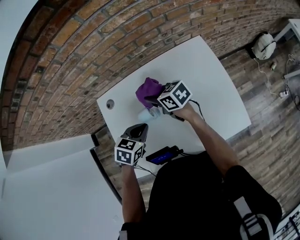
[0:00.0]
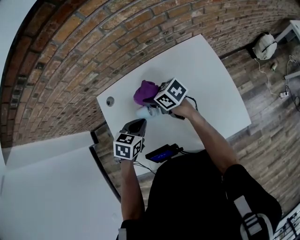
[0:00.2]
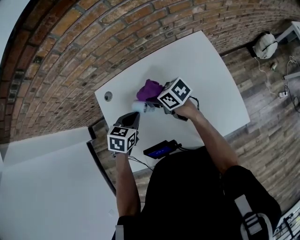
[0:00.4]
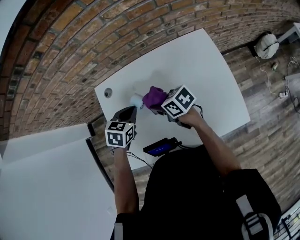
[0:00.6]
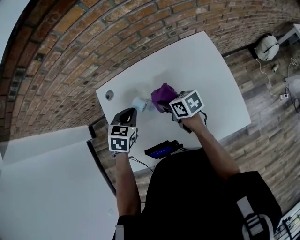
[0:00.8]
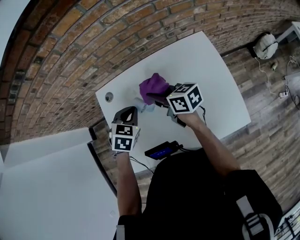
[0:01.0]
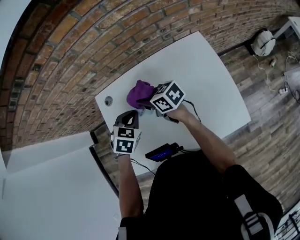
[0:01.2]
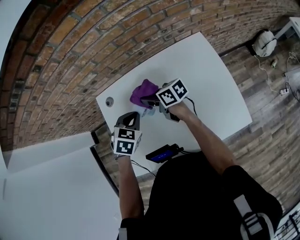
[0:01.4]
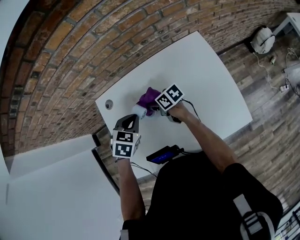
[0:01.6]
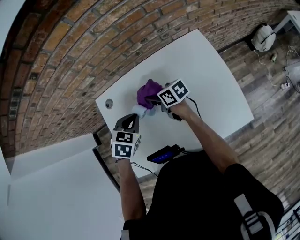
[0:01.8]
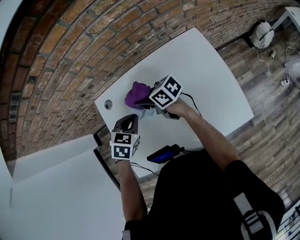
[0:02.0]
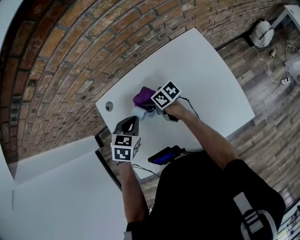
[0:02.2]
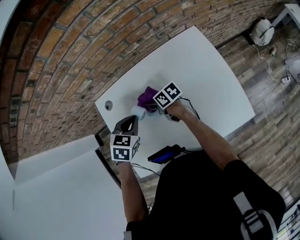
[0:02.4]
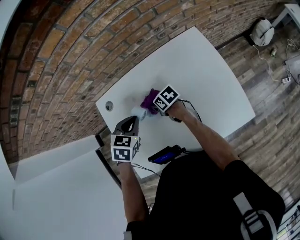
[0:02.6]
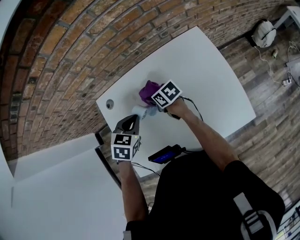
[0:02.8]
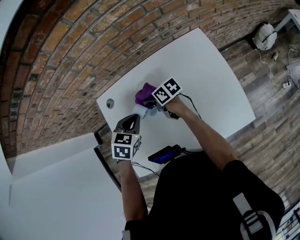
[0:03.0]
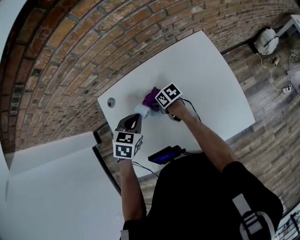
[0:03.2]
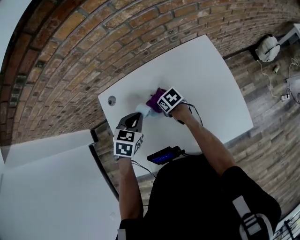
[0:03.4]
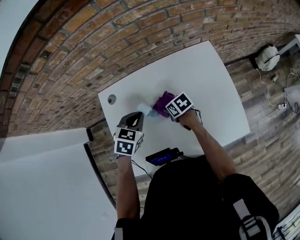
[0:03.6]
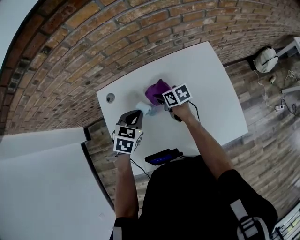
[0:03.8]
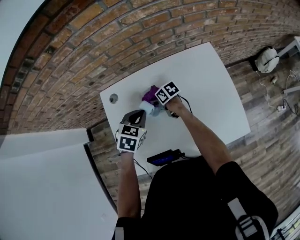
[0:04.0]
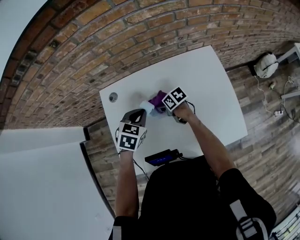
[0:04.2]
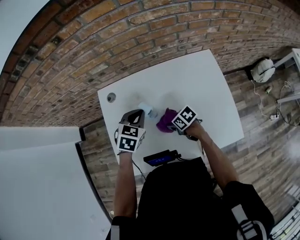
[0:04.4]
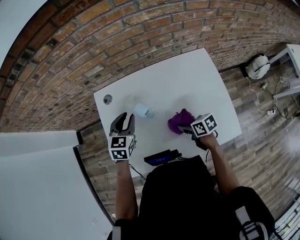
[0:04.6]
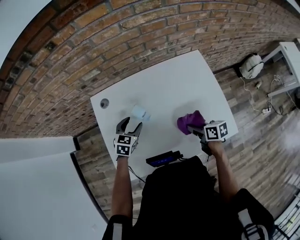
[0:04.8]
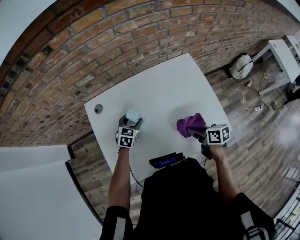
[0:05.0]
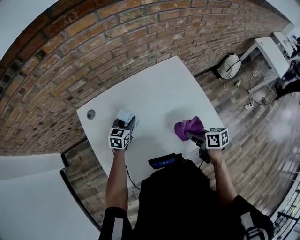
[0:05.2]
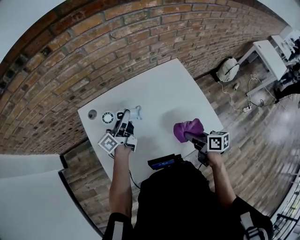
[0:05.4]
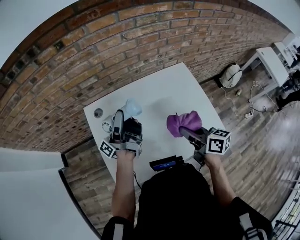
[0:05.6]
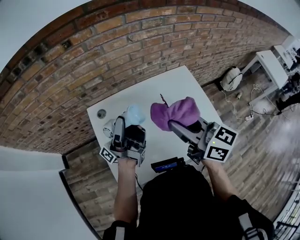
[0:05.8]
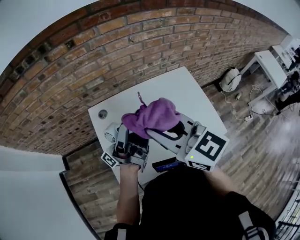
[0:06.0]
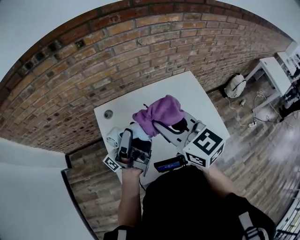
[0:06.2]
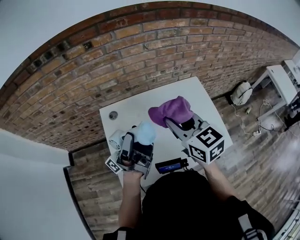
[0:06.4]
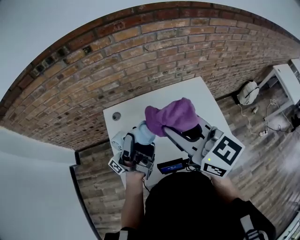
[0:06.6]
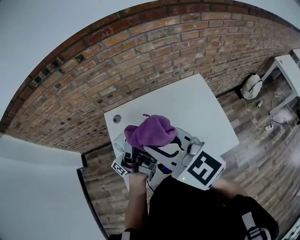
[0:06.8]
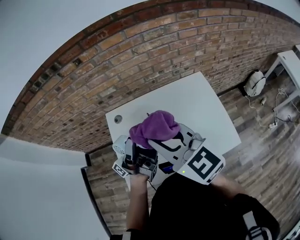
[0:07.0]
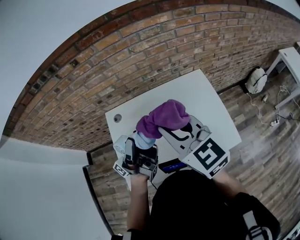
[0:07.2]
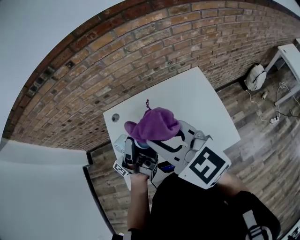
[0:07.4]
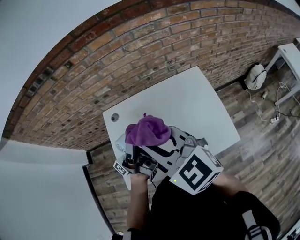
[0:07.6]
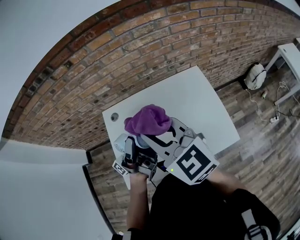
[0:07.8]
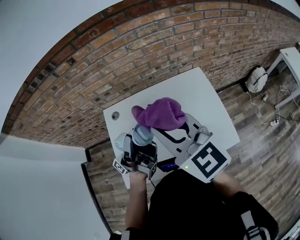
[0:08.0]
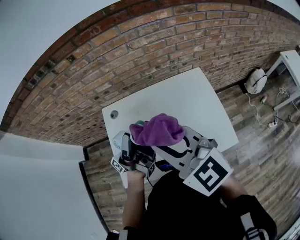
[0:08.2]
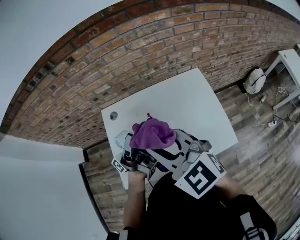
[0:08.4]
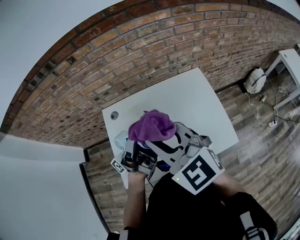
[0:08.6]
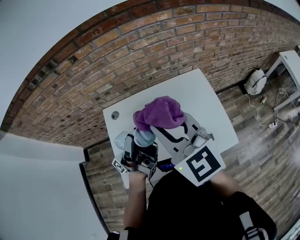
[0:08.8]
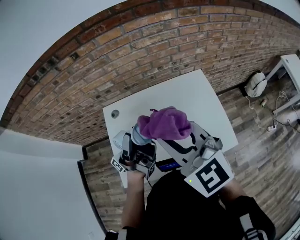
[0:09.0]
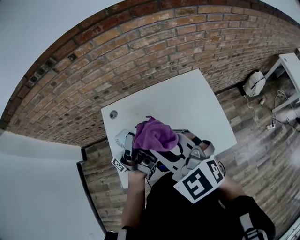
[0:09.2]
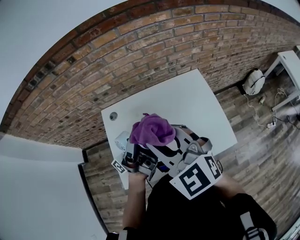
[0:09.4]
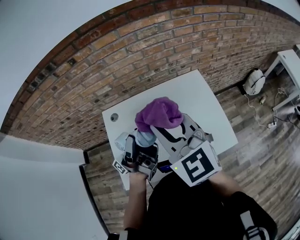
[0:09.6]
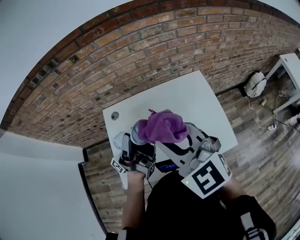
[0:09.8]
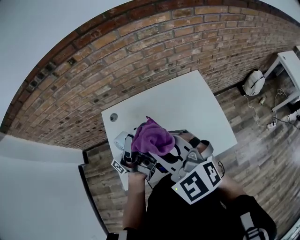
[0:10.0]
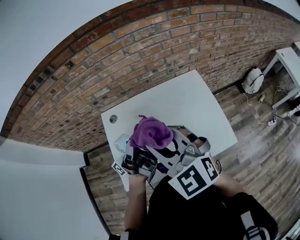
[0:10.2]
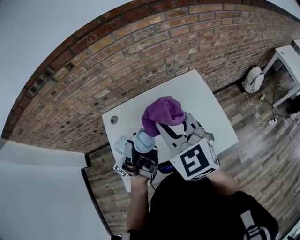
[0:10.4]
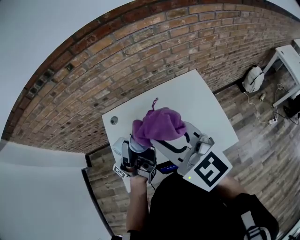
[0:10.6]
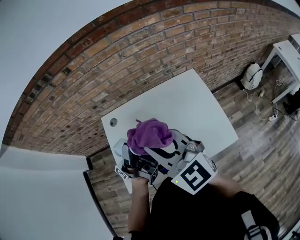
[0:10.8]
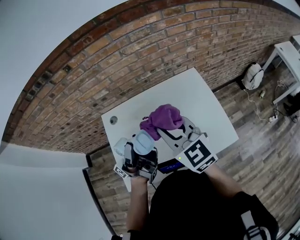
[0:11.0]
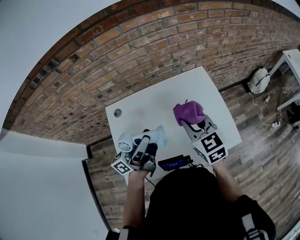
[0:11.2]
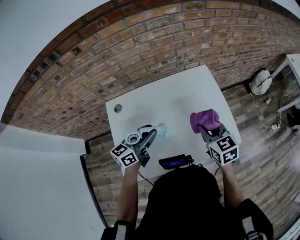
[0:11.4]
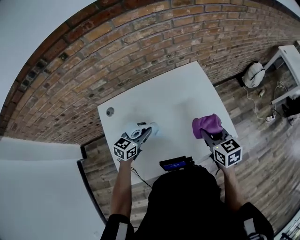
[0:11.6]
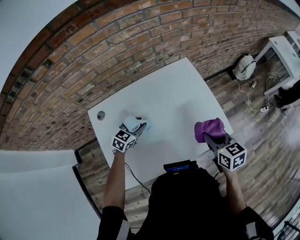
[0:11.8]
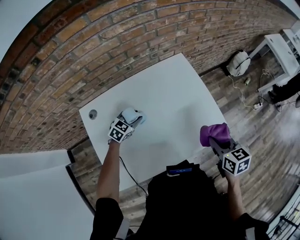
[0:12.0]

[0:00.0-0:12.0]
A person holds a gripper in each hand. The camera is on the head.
0:00.0 to 0:01.6: The right gripper travels downward by roughly 10 cm, while the left gripper is displaced forward by approximately 5 cm.
0:01.6 to 0:03.0: The right gripper moves up and down over about 15 cm, changing direction 2 times.
0:03.0 to 0:04.4: The right gripper moves forward and backward over some 15 cm, changing direction 2 times, and changes its angle by some 30 degrees.
0:04.4 to 0:06.0: The right gripper is displaced upward by approximately 40 cm, and angles its fingers upward, by approximately 40 degrees. Meanwhile the left gripper shifts some 20 cm upward, tips its fingers upward by about 100 degrees, and opens its fingers.
0:06.0 to 0:07.6: The right gripper goes left and right, roughly 10 cm each way, reversing 2 times; the left gripper travels to the right by roughly 5 cm.
0:07.6 to 0:09.0: There are only small adjustments of the grippers.
0:09.0 to 0:10.4: The right gripper changes place by some 5 cm.
0:10.4 to 0:12.0: Both grippers travel together downward, about 30 cm. The left gripper points its fingers about 90 degrees further downward. The right gripper rotates roughly 50 degrees.

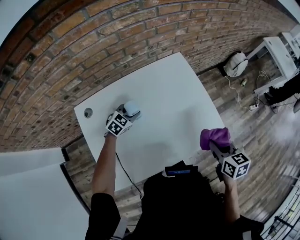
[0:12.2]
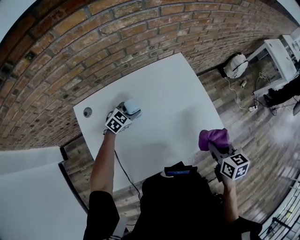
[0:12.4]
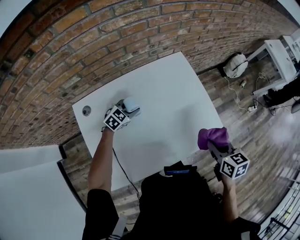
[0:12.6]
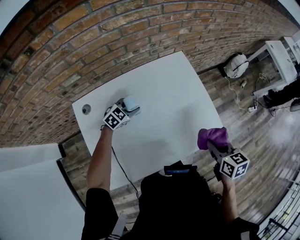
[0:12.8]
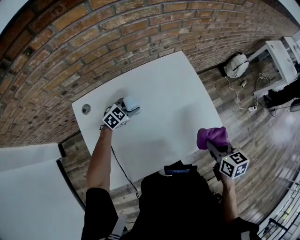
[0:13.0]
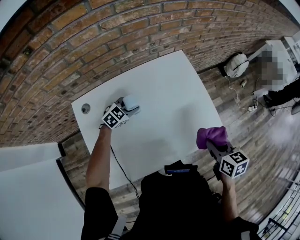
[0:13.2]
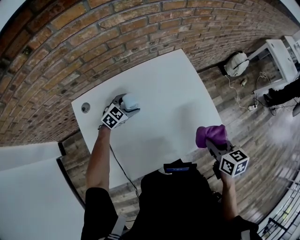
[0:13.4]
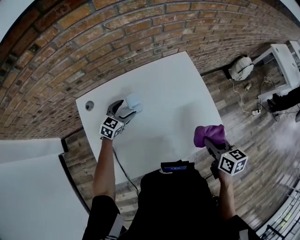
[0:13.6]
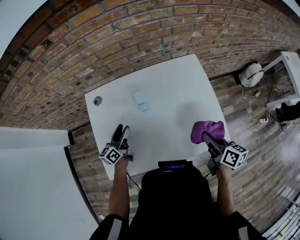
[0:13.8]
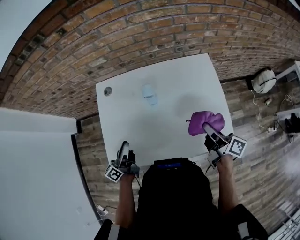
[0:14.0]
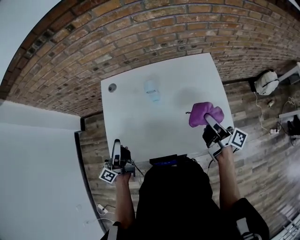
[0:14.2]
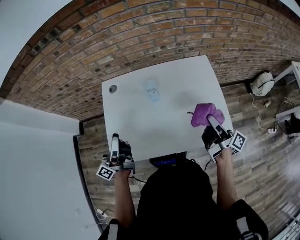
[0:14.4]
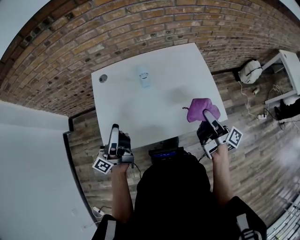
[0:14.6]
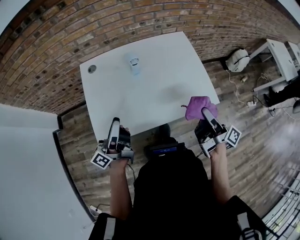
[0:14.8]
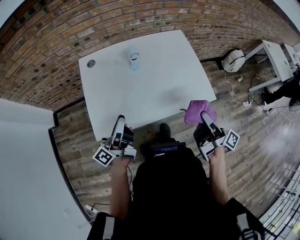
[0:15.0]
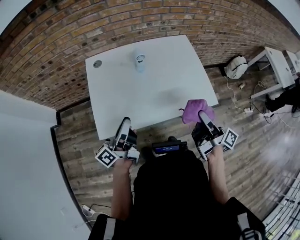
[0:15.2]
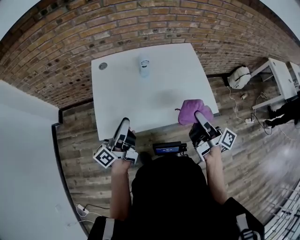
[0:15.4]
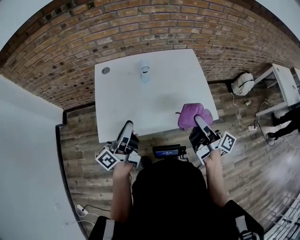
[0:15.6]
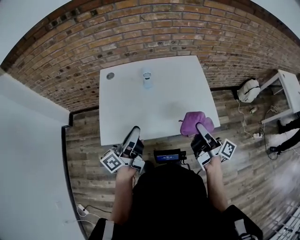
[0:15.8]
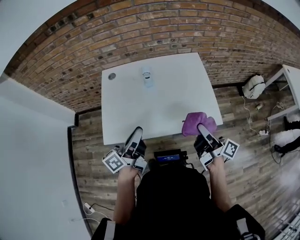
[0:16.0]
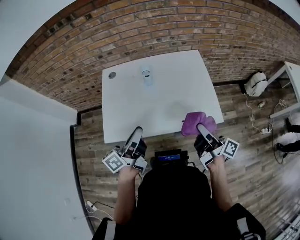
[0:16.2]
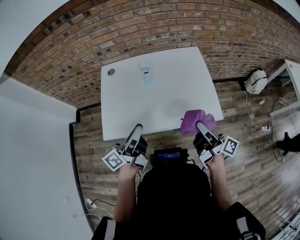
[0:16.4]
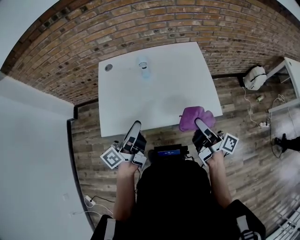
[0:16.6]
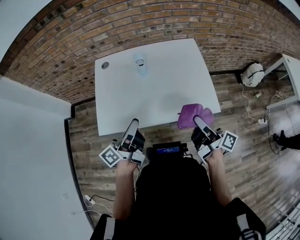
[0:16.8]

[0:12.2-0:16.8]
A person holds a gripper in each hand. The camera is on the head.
0:12.2 to 0:13.8: The left gripper shifts by some 15 cm, points its fingers about 40 degrees further upward, and opens its fingers. The right gripper shifts by approximately 5 cm, and rotates some 30 degrees.
0:13.8 to 0:15.2: The left gripper goes approximately 30 cm backward and upward, turns by approximately 30 degrees, and closes up. The right gripper is displaced backward and upward by roughly 15 cm, and points its fingers about 30 degrees further upward.
0:15.2 to 0:16.8: The left gripper moves to the right, about 10 cm.

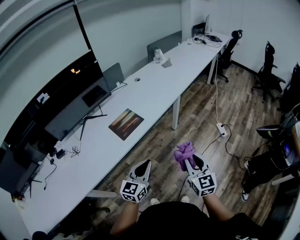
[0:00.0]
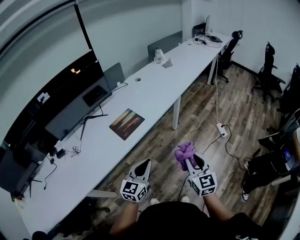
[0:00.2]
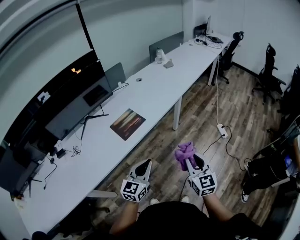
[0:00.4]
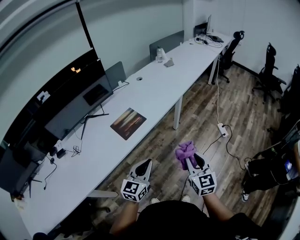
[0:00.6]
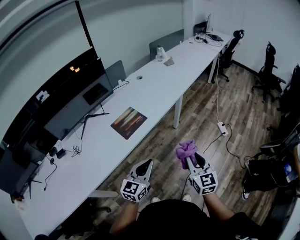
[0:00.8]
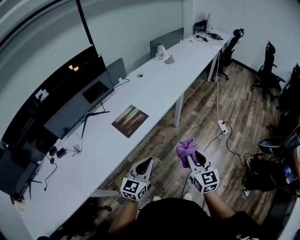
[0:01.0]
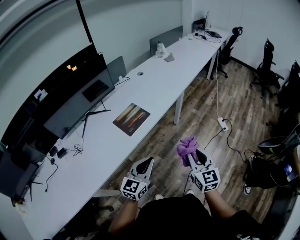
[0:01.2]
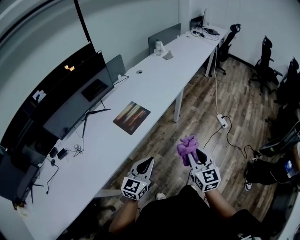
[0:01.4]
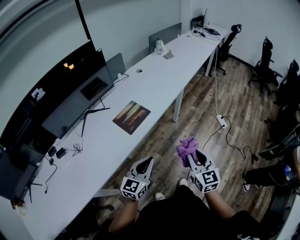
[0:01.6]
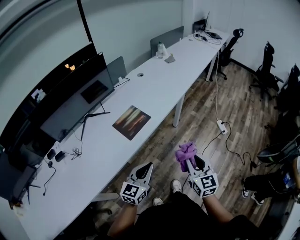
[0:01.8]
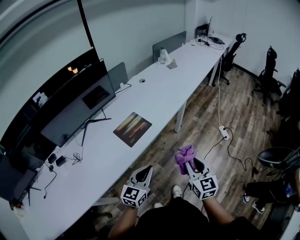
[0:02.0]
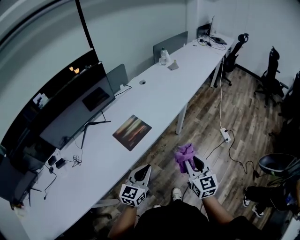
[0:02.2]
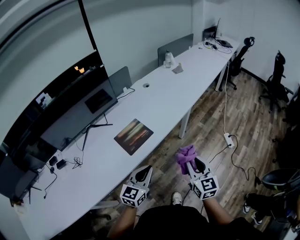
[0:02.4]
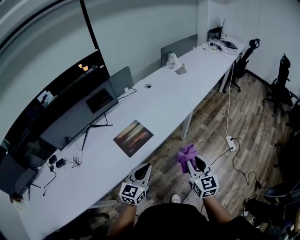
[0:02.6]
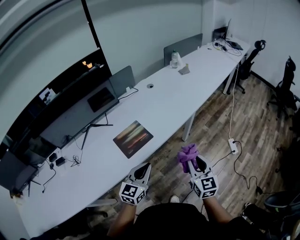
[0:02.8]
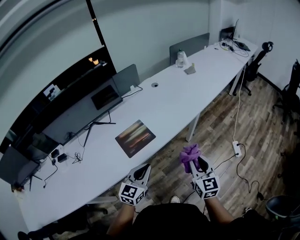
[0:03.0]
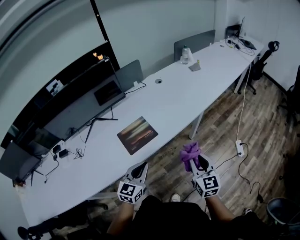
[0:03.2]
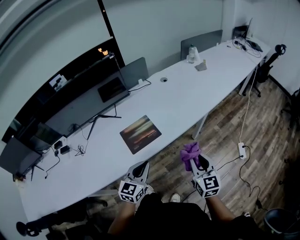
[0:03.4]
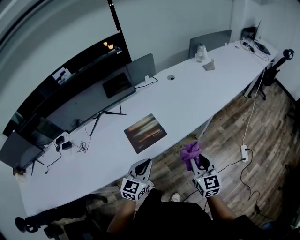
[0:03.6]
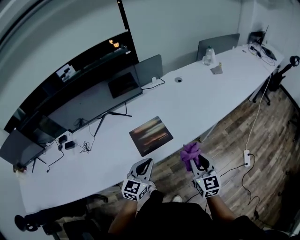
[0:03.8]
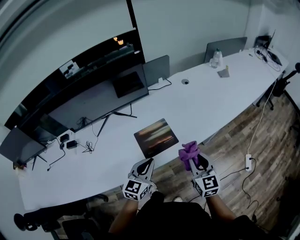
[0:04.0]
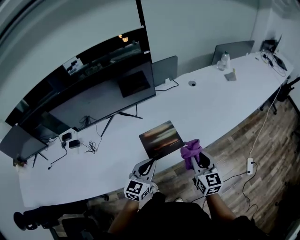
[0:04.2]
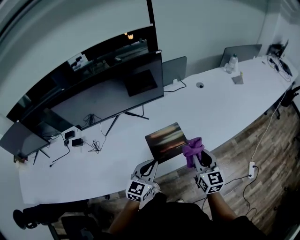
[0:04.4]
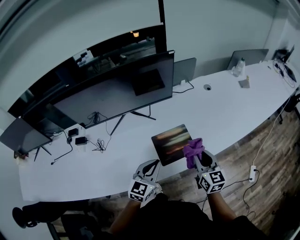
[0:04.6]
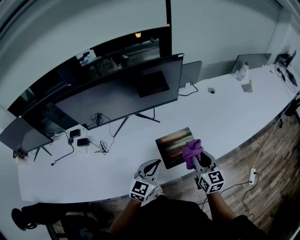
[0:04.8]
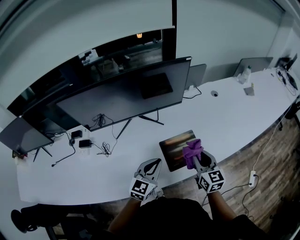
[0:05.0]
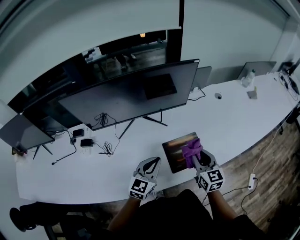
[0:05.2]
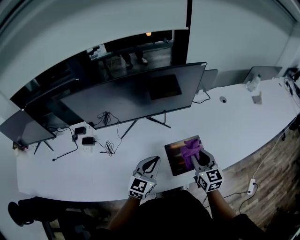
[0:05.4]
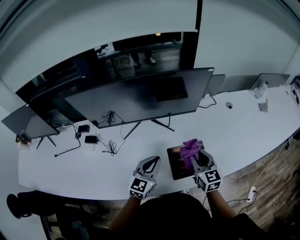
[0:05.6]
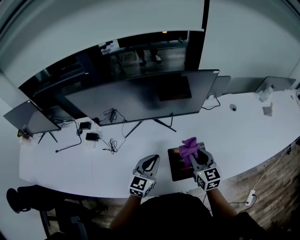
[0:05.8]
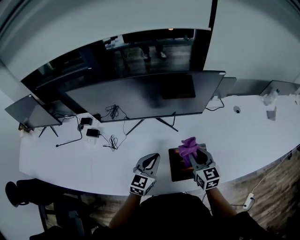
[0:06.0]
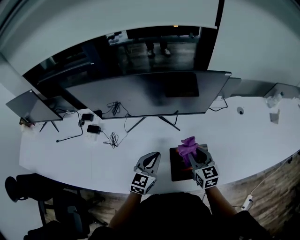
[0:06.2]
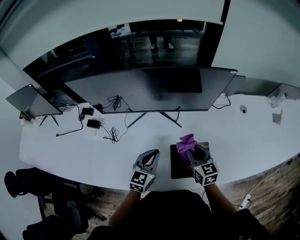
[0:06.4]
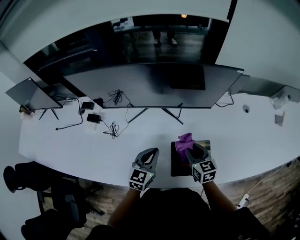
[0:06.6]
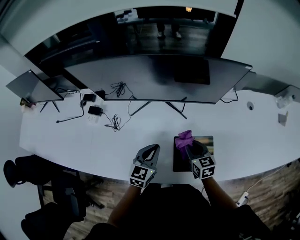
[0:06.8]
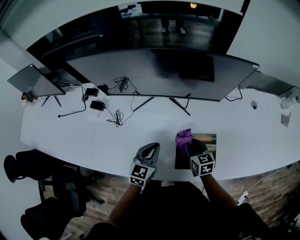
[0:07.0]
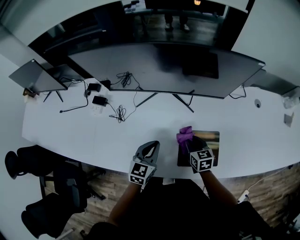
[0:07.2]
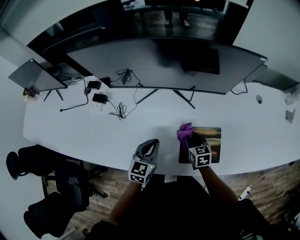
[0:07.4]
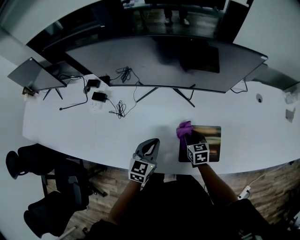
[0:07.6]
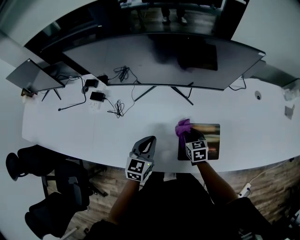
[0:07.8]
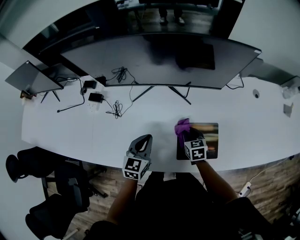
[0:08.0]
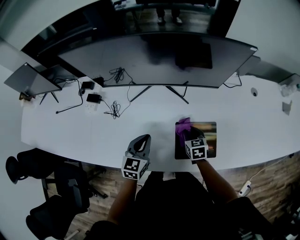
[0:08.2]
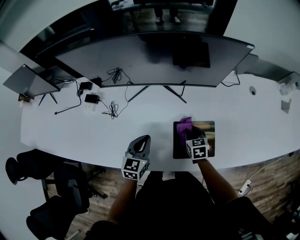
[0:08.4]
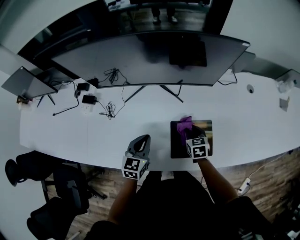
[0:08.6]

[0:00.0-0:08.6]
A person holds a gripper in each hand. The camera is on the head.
0:00.0 to 0:01.4: The grippers both shift to the left by some 5 cm.
0:01.4 to 0:02.8: The grippers both shift forward by approximately 15 cm.
0:02.8 to 0:04.4: The right gripper is displaced forward and to the left by approximately 25 cm, and rotates some 20 degrees, while the left gripper travels to the left and forward by roughly 20 cm.
0:04.4 to 0:05.8: Both grippers move to the left and forward, roughly 20 cm. The right gripper swivels approximately 20 degrees.
0:05.8 to 0:07.2: The left gripper shifts some 5 cm downward. The right gripper shifts approximately 15 cm downward and to the left, and swivels approximately 20 degrees.
0:07.2 to 0:08.6: The right gripper moves to the right, some 5 cm.
